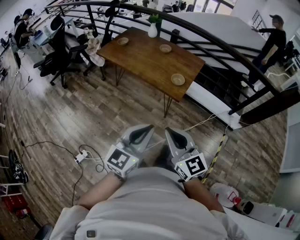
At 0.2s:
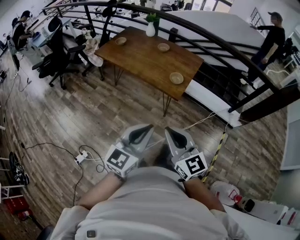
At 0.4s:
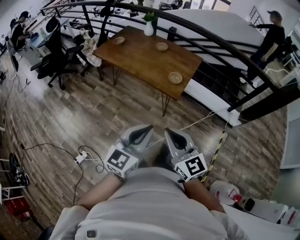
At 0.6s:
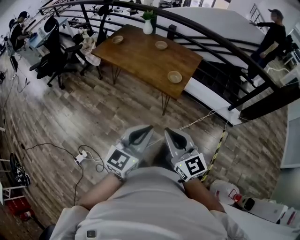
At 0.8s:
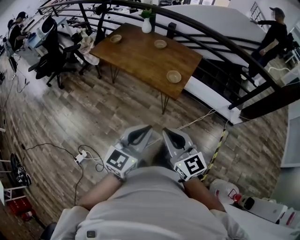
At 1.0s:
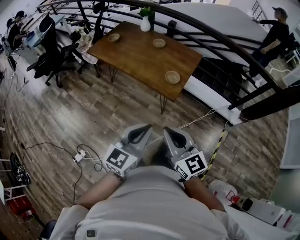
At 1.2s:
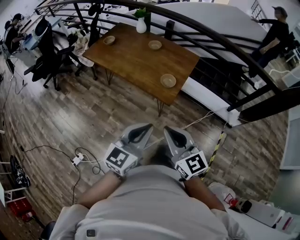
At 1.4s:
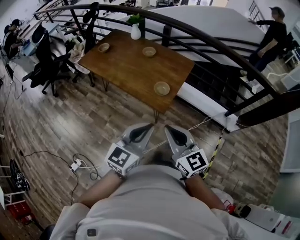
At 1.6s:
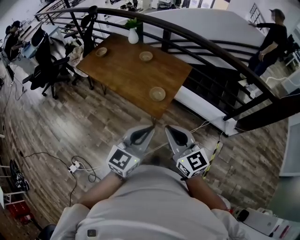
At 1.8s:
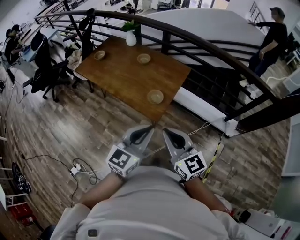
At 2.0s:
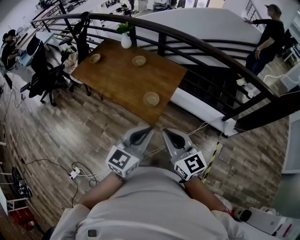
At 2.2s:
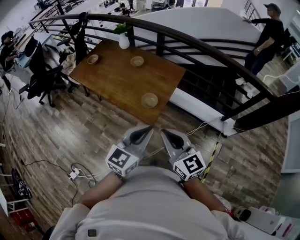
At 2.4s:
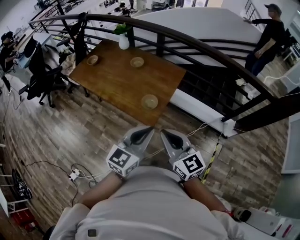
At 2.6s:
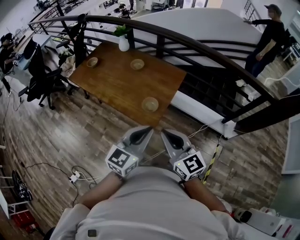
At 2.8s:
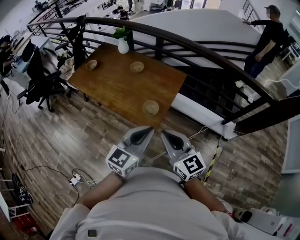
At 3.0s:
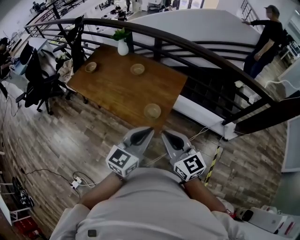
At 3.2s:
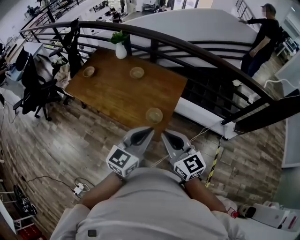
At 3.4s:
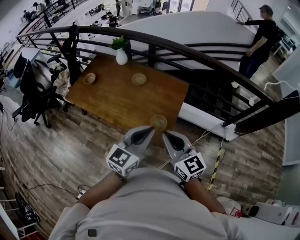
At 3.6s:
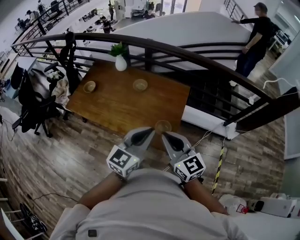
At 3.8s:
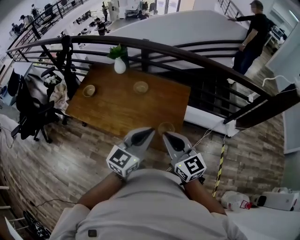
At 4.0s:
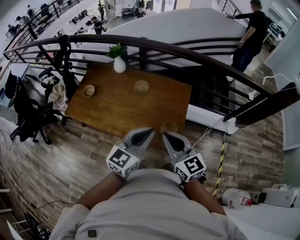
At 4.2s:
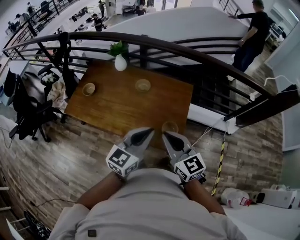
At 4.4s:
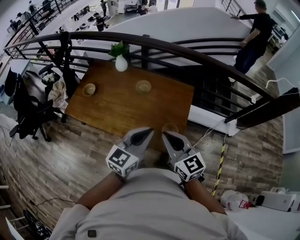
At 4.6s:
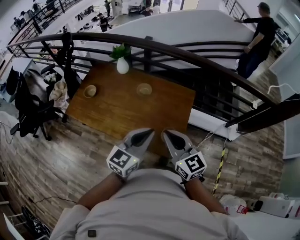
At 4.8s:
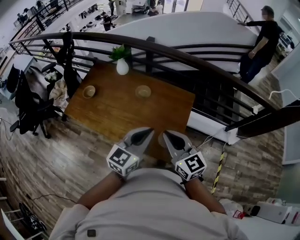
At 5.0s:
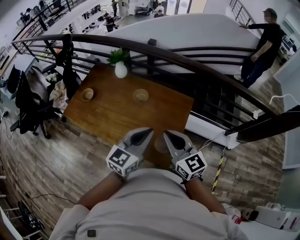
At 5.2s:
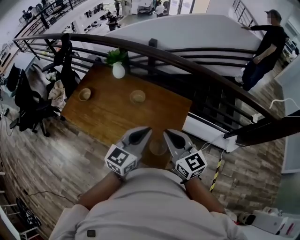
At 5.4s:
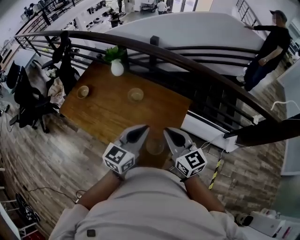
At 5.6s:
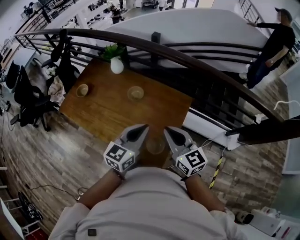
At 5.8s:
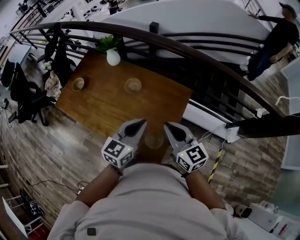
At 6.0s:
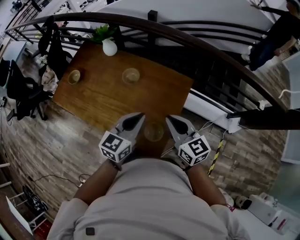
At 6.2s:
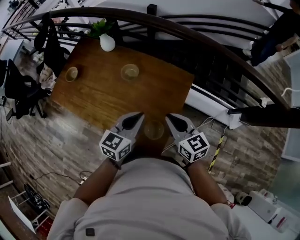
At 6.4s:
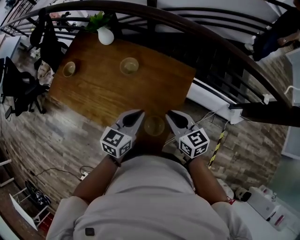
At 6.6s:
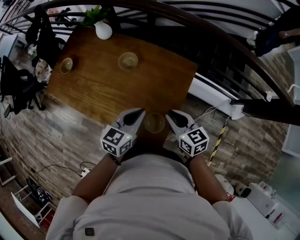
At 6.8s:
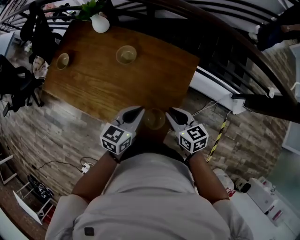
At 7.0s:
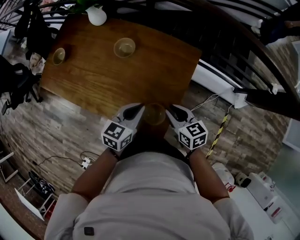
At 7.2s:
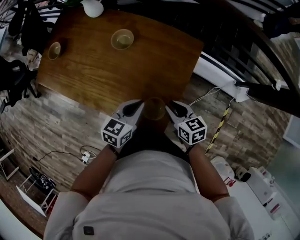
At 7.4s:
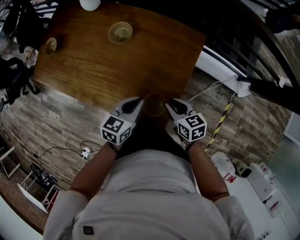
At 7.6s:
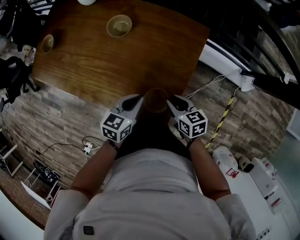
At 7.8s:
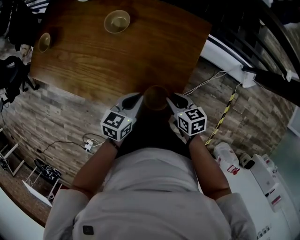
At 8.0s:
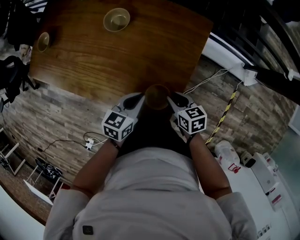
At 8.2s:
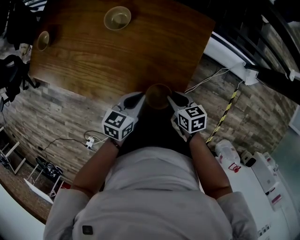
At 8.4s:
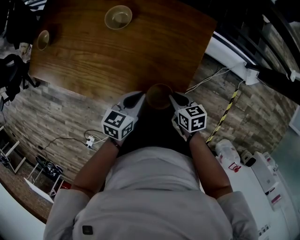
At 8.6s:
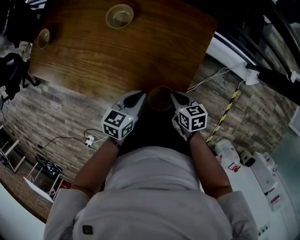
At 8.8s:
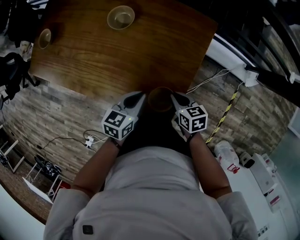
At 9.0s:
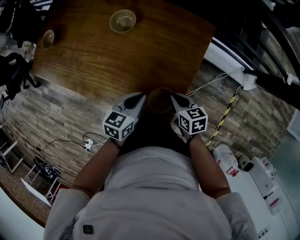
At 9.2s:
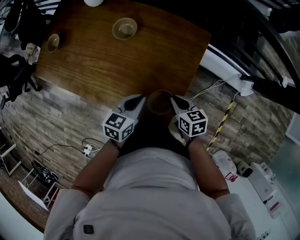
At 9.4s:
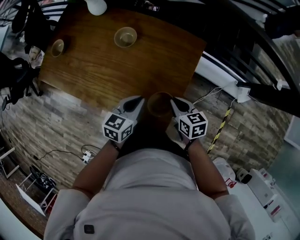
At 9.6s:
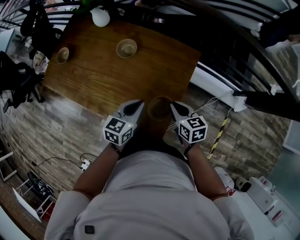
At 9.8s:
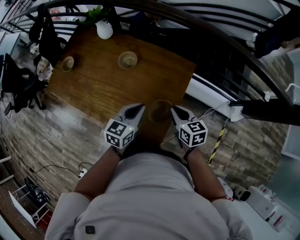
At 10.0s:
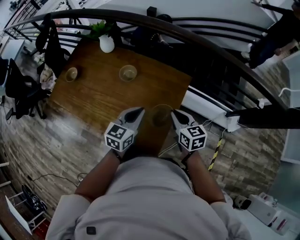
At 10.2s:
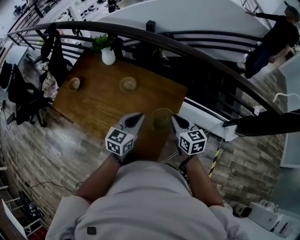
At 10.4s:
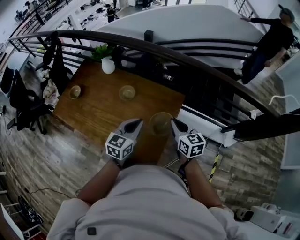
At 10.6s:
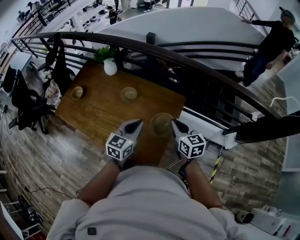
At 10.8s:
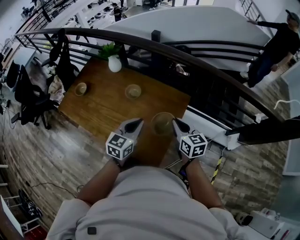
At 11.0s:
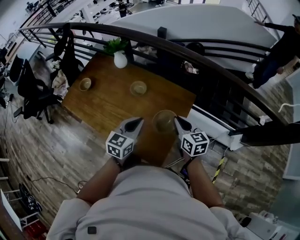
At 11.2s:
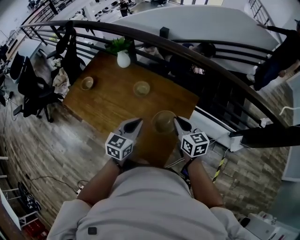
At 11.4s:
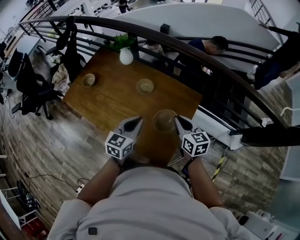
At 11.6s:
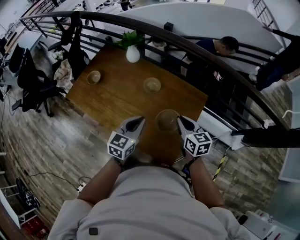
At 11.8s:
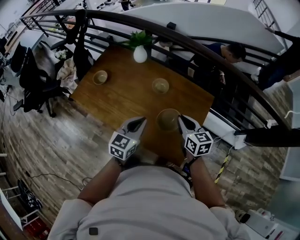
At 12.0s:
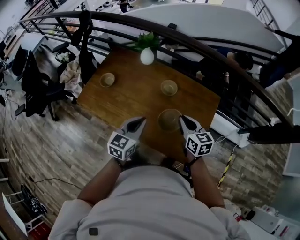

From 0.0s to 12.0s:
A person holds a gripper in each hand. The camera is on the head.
From 0.0s to 1.6s: Both grippers travel together forward and to the right, some 30 cm.
From 1.6s to 3.0s: Both grippers travel together forward, roughly 15 cm.
From 3.0s to 4.4s: The two grippers go some 25 cm to the left and forward.
From 4.4s to 6.0s: The grippers both shift forward, to the right and downward by some 25 cm.
From 6.0s to 7.6s: Both grippers travel together downward, some 30 cm. The right gripper swivels about 30 degrees, and opens its fingers, while the left gripper swivels approximately 30 degrees.
From 7.6s to 9.0s: The grippers move only a little.
From 9.0s to 10.4s: Both grippers travel together upward, approximately 25 cm. The left gripper swivels roughly 30 degrees; the right gripper turns by about 30 degrees.
From 10.4s to 12.0s: The two grippers go some 30 cm to the left.

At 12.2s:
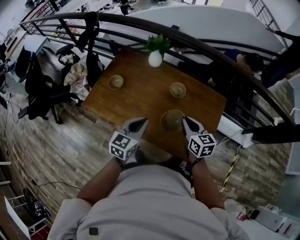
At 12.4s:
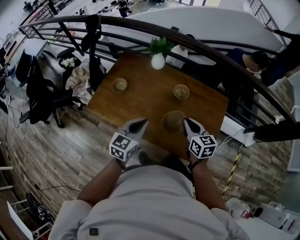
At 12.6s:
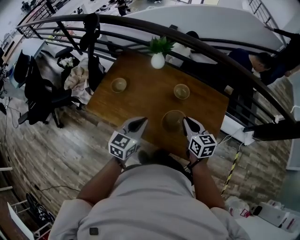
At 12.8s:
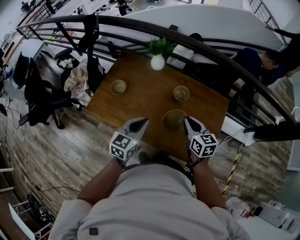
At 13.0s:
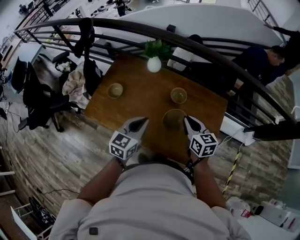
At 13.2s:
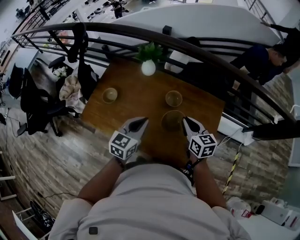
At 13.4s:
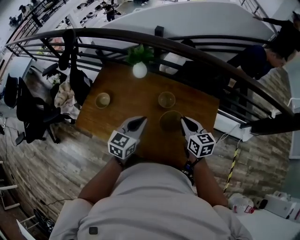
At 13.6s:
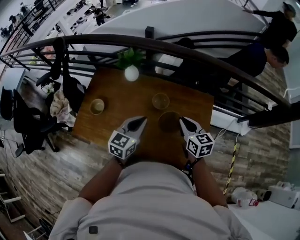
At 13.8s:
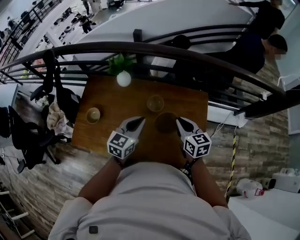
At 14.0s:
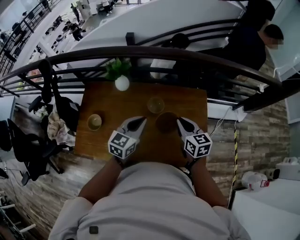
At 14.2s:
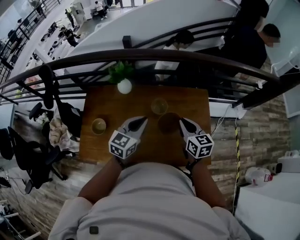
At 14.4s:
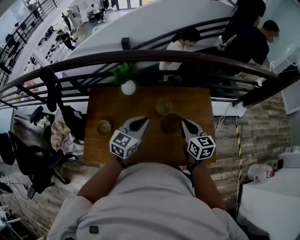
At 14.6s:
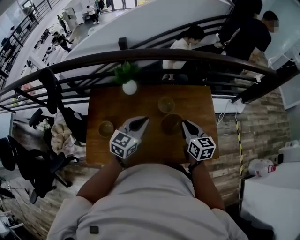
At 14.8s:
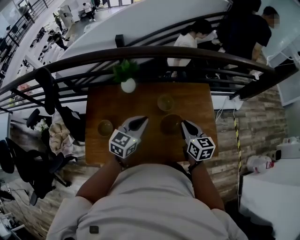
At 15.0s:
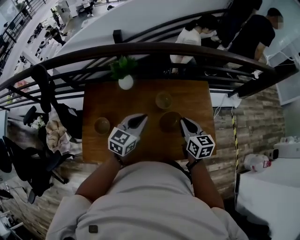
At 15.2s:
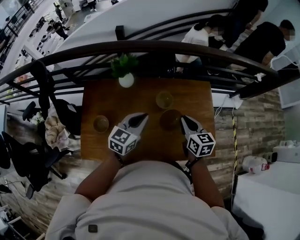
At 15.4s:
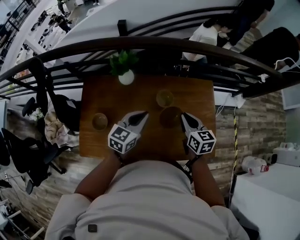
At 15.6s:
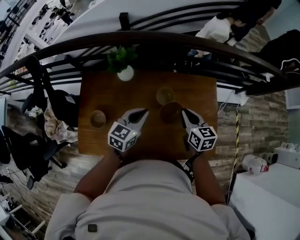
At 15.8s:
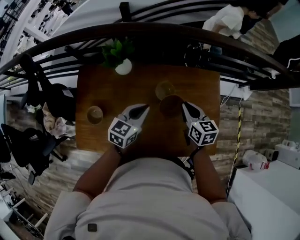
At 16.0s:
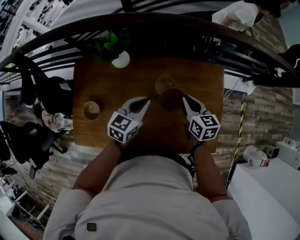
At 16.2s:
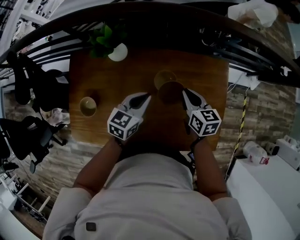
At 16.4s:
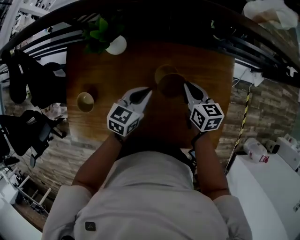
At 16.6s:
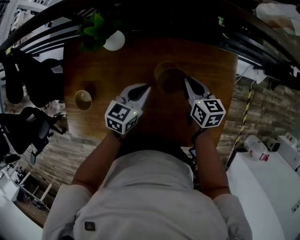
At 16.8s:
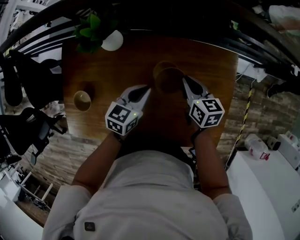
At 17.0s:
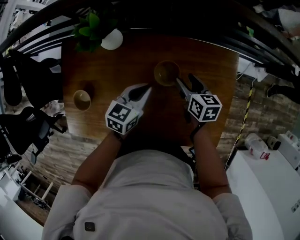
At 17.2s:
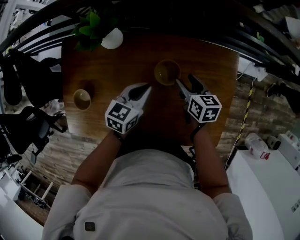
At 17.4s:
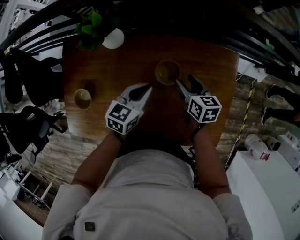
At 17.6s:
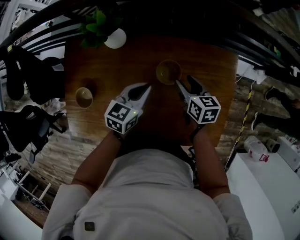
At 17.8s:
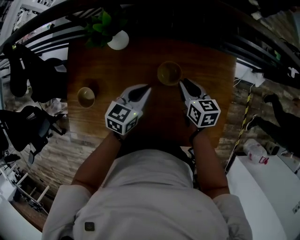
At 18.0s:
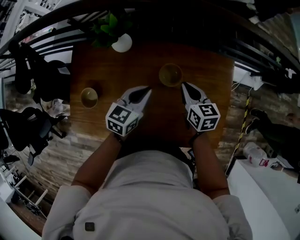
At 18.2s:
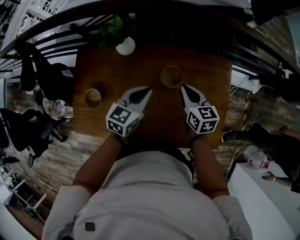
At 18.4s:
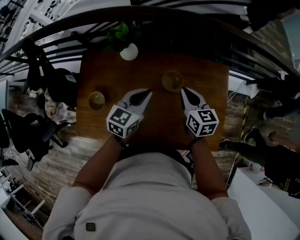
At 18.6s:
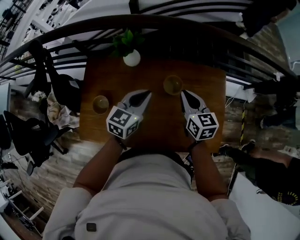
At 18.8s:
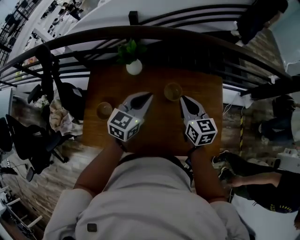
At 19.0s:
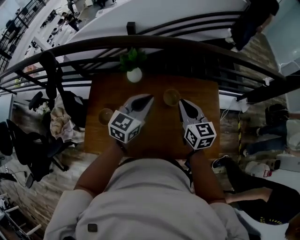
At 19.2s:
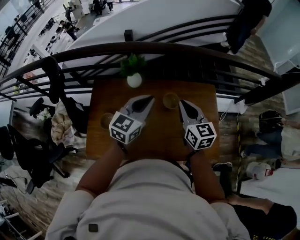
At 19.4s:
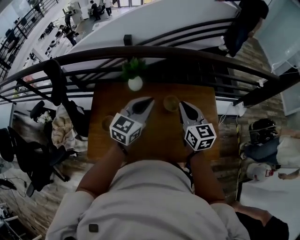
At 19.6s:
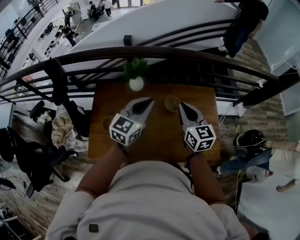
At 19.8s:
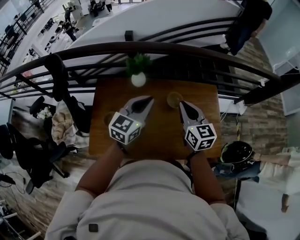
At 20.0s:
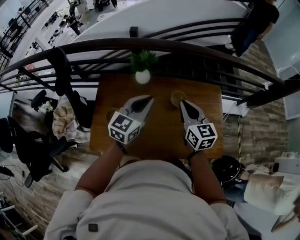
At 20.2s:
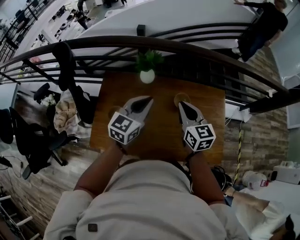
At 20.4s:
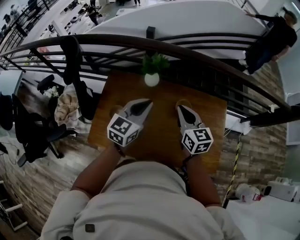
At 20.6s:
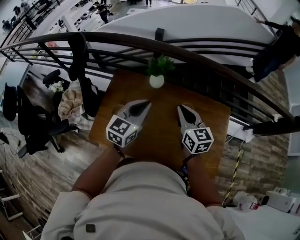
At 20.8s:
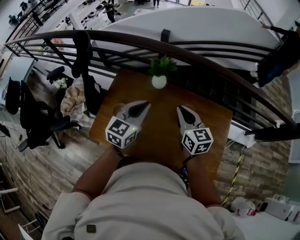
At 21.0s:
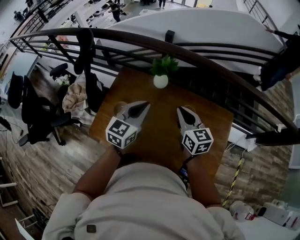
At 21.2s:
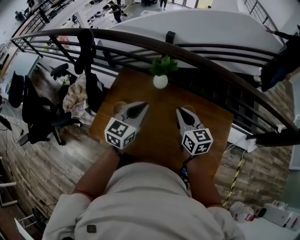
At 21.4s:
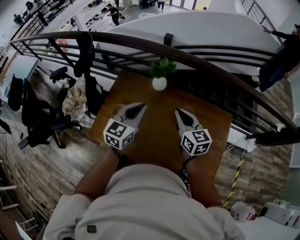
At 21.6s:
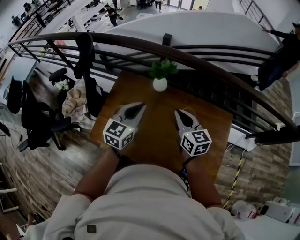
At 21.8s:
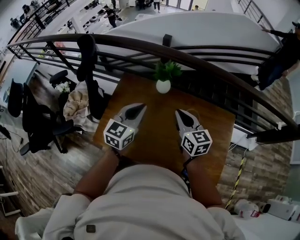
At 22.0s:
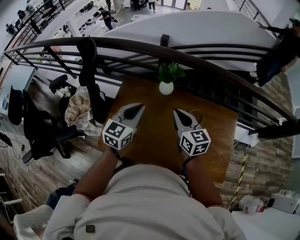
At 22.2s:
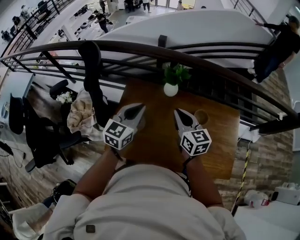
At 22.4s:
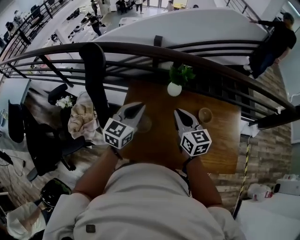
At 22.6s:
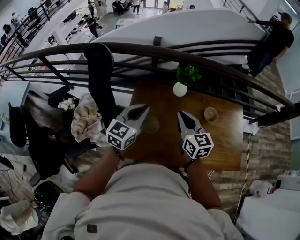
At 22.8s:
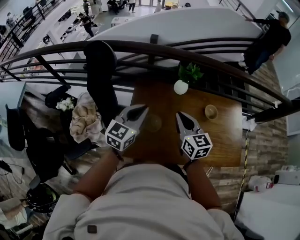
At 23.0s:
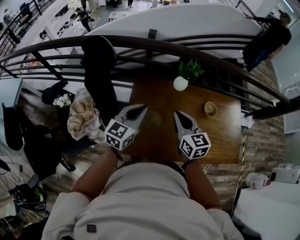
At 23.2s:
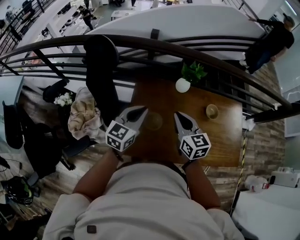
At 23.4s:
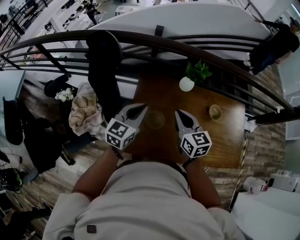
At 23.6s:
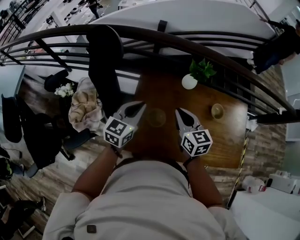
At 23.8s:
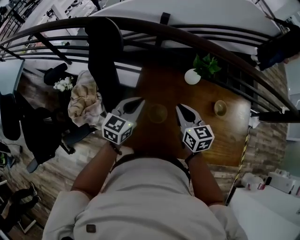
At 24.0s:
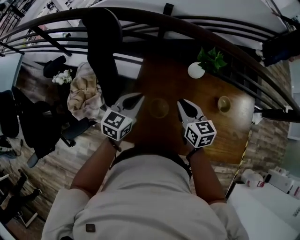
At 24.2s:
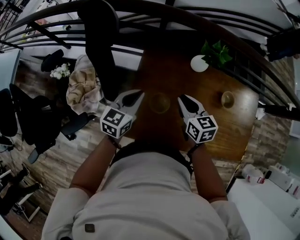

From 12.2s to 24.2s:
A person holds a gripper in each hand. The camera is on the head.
From 12.2s to 13.8s: The left gripper travels forward by some 15 cm; the right gripper is displaced forward by roughly 10 cm.
From 13.8s to 15.2s: Both grippers move to the left, some 10 cm.
From 15.2s to 16.6s: The right gripper moves forward and downward, approximately 25 cm; the left gripper travels downward and forward by some 25 cm.
From 16.6s to 18.2s: The right gripper is displaced upward and backward by approximately 10 cm, and opens and closes again. The left gripper goes roughly 10 cm upward.
From 18.2s to 19.8s: The two grippers go about 25 cm upward and backward. The right gripper changes its angle by about 20 degrees, while the left gripper swivels roughly 20 degrees.
From 19.8s to 21.2s: The right gripper shifts by some 5 cm, and changes its angle by some 20 degrees, while the left gripper rotates roughly 20 degrees.
From 21.2s to 22.6s: Both grippers move to the left, about 25 cm.
From 22.6s to 24.2s: The right gripper moves downward, to the left and forward, some 20 cm, and swivels some 20 degrees. Meanwhile the left gripper goes about 20 cm downward and to the left.
